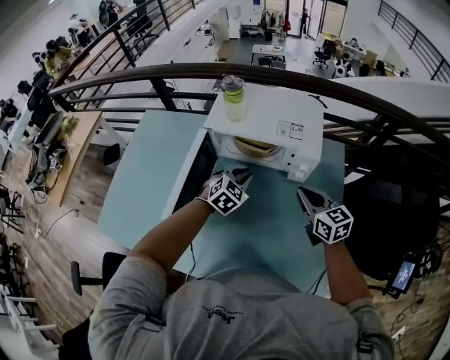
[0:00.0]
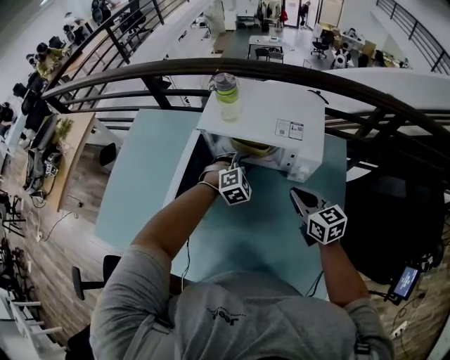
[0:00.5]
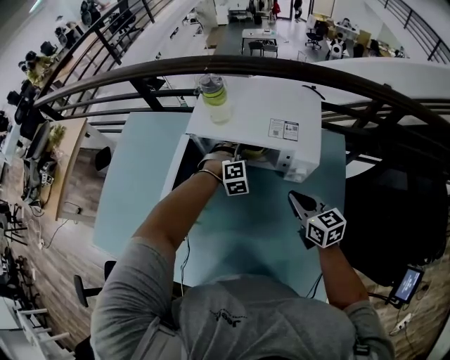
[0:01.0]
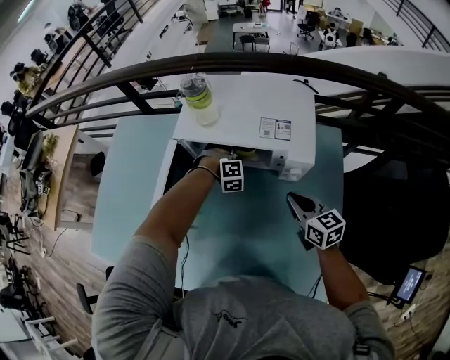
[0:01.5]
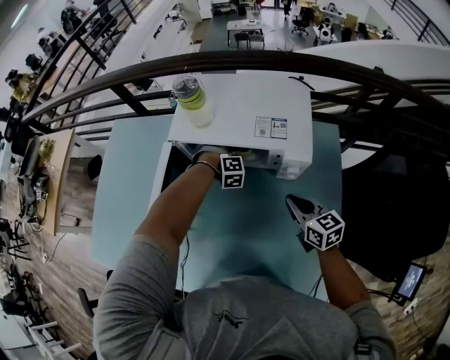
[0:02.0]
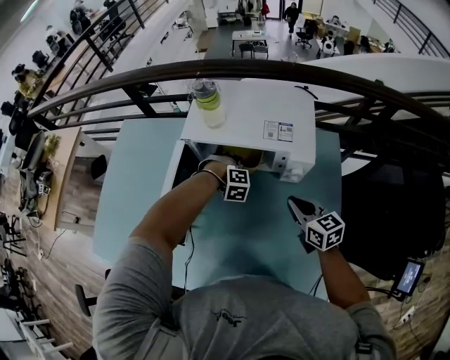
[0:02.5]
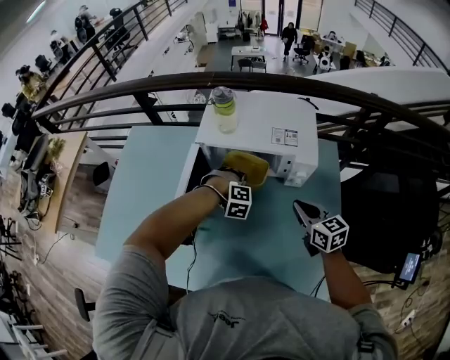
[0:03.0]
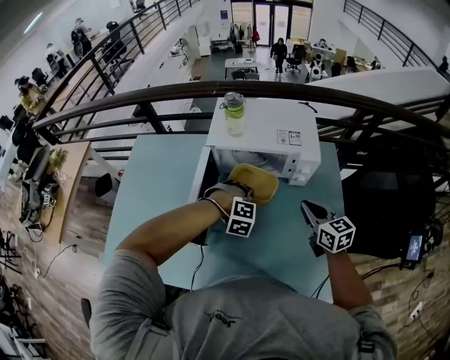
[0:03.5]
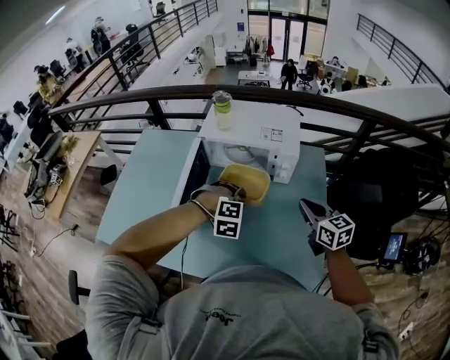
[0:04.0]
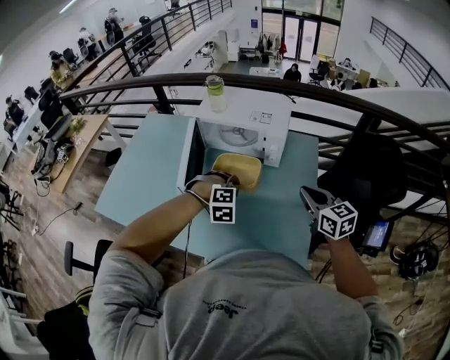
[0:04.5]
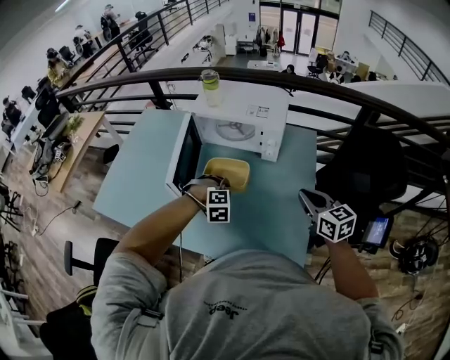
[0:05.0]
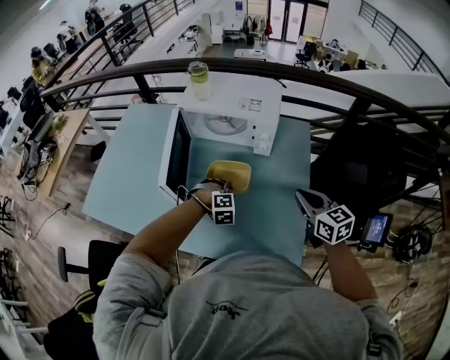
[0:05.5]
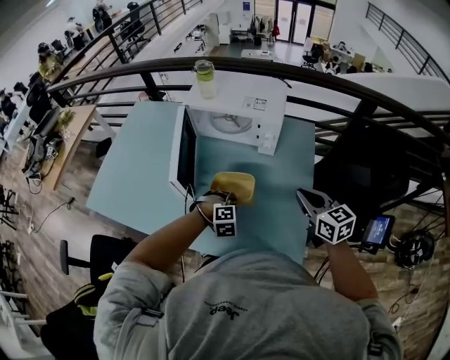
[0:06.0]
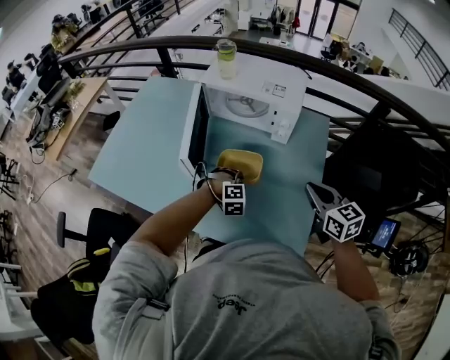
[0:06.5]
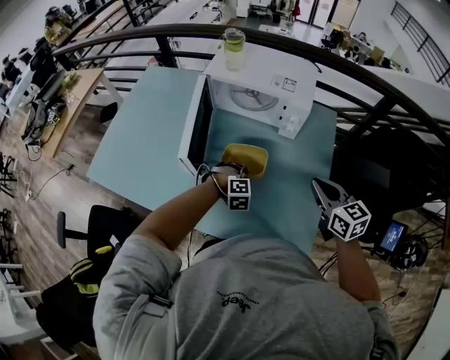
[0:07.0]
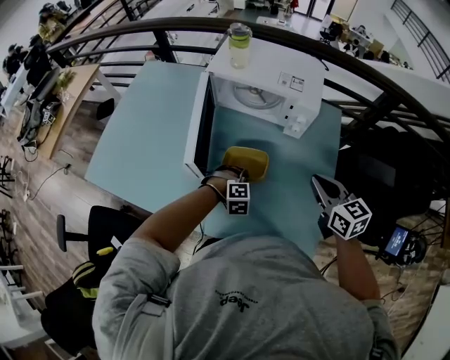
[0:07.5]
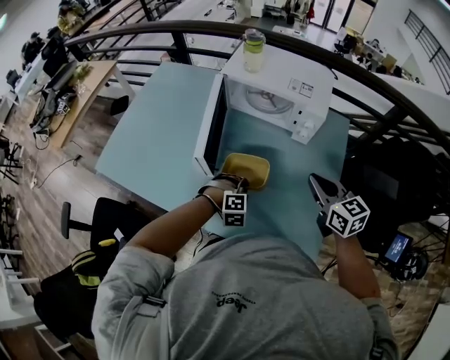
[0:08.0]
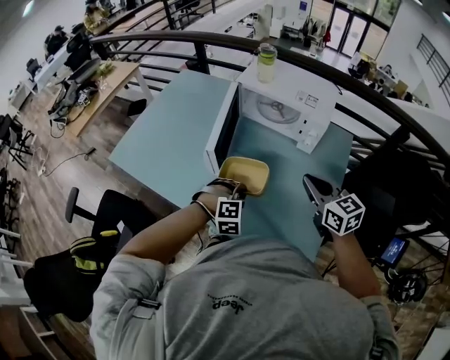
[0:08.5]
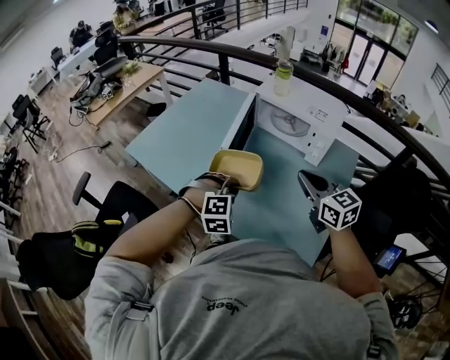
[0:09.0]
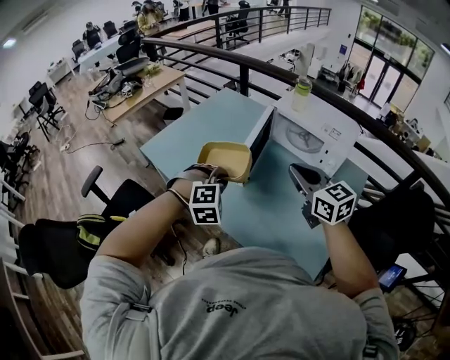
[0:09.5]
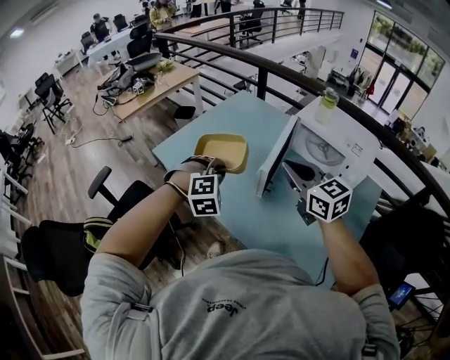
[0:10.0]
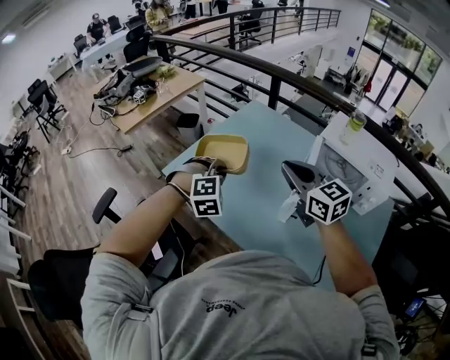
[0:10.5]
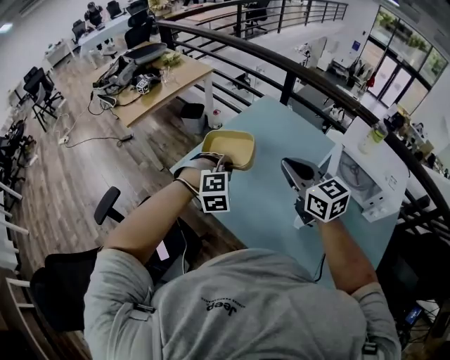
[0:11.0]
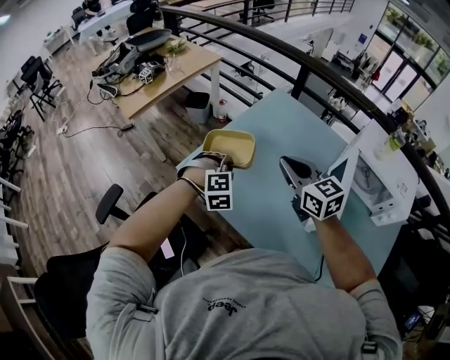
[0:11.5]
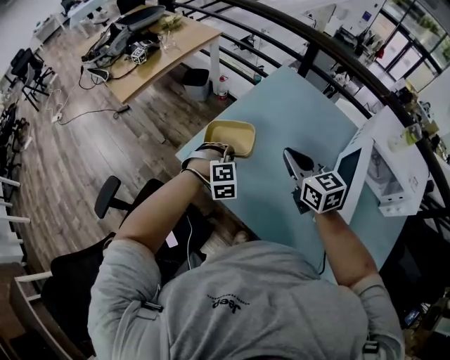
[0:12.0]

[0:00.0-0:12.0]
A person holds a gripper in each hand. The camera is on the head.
0:00.0 to 0:02.0: The left gripper goes roughly 20 cm downward and forward, twists some 50 degrees clockwise, seen from behind, and opens and closes again. Meanwhile the right gripper moves downward, about 10 cm.
0:02.0 to 0:04.0: The right gripper moves upward and backward, about 20 cm. Meanwhile the left gripper shifts some 35 cm backward and upward.
0:04.0 to 0:06.0: The right gripper shifts about 10 cm backward and to the right. Meanwhile the left gripper heads downward and backward, covering roughly 15 cm.
0:06.0 to 0:08.0: The left gripper travels to the left by about 5 cm; the right gripper goes some 10 cm to the left and forward.
0:08.0 to 0:10.0: The left gripper moves some 35 cm, and changes its angle by about 30 degrees; the right gripper moves approximately 30 cm, and turns by approximately 30 degrees.
0:10.0 to 0:12.0: The right gripper moves forward and to the left, roughly 35 cm. Meanwhile the left gripper travels forward, to the left and downward by about 40 cm.

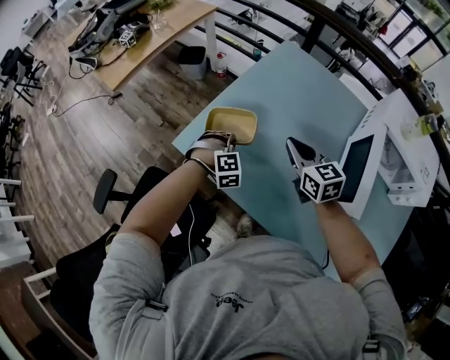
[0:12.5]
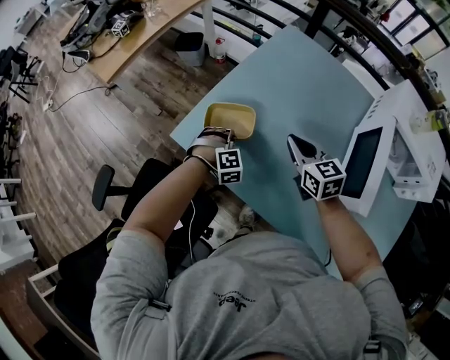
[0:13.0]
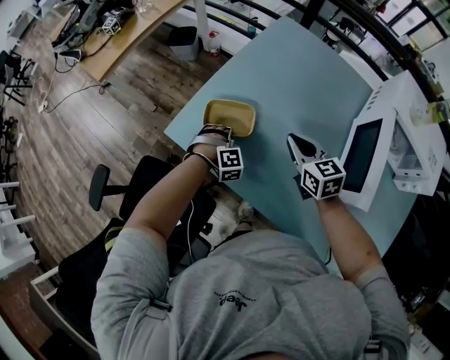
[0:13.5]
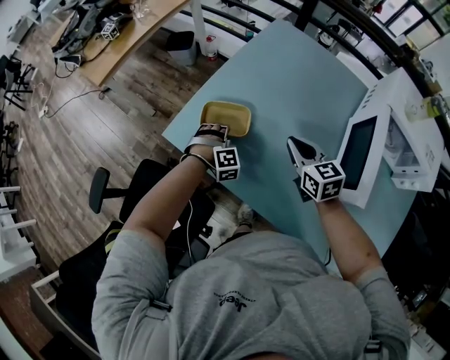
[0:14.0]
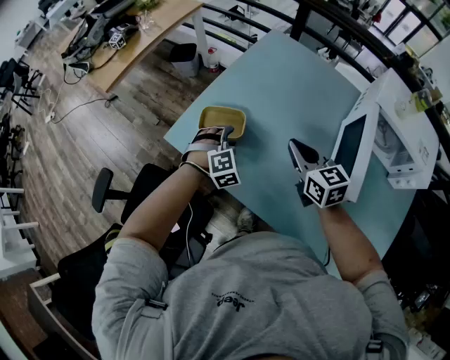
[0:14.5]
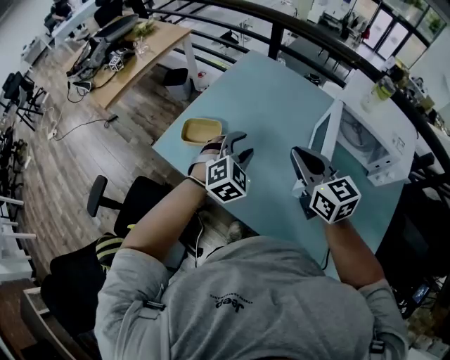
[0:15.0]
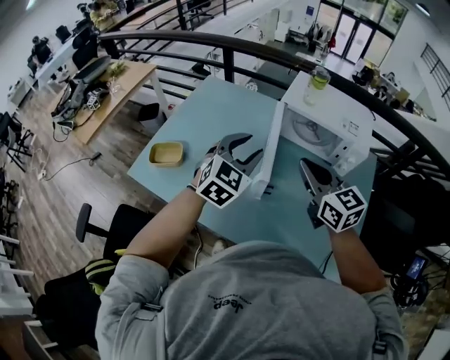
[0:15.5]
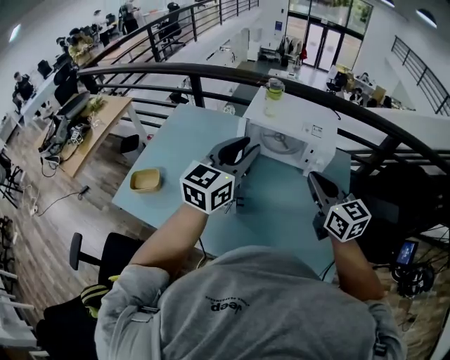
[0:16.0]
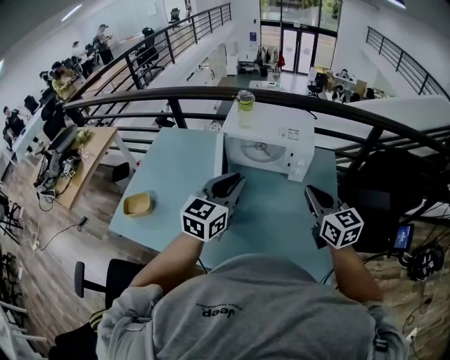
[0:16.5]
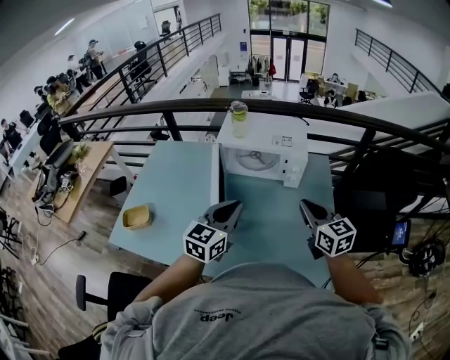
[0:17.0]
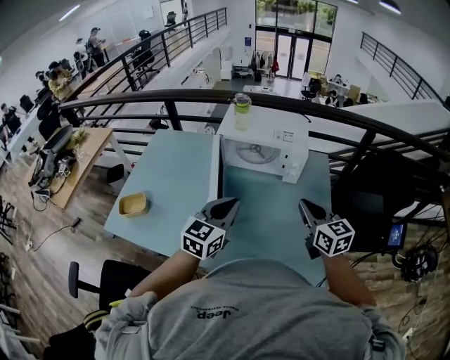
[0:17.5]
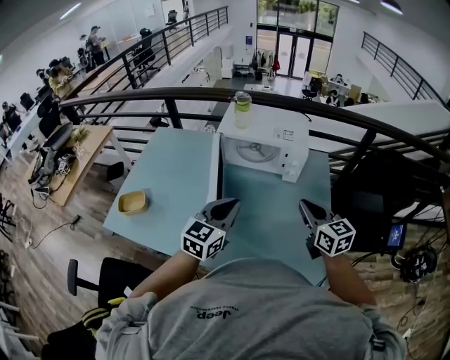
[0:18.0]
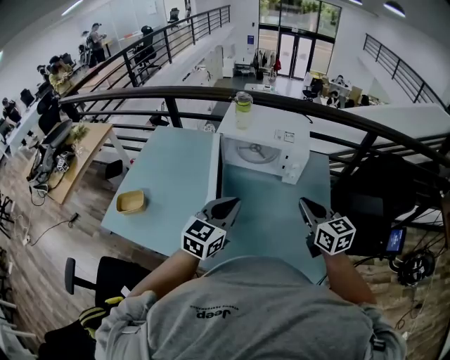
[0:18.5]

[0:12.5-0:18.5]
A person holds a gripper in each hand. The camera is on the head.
0:12.5 to 0:14.5: The right gripper shifts roughly 5 cm backward, while the left gripper travels downward and back again, some 10 cm each way, and opens its fingers.
0:14.5 to 0:16.5: The pair of grippers is taken roughly 50 cm. The left gripper angles its fingers upward, by some 40 degrees, and closes up. The right gripper changes its angle by roughly 30 degrees.
0:16.5 to 0:18.5: The left gripper shifts about 5 cm downward.

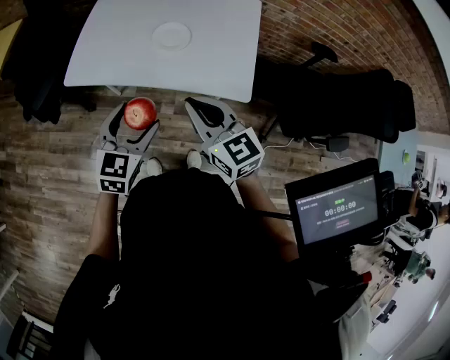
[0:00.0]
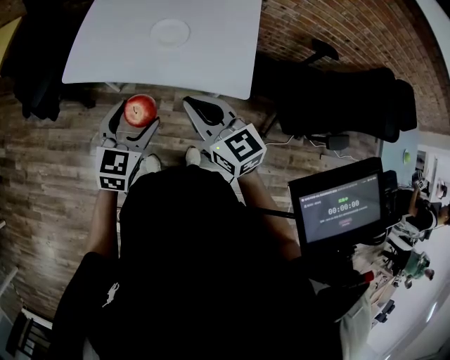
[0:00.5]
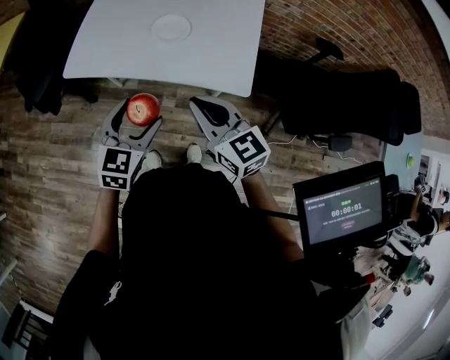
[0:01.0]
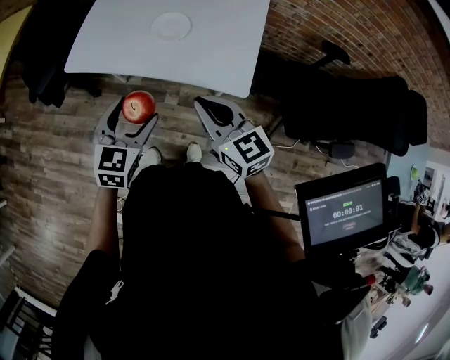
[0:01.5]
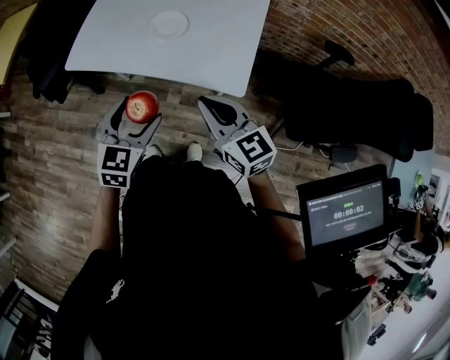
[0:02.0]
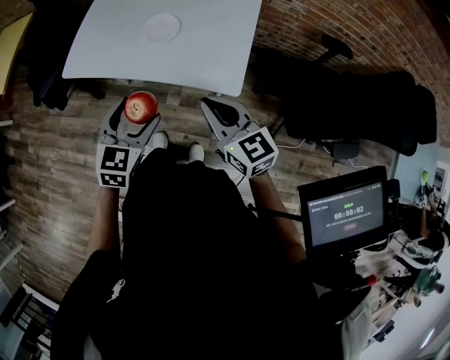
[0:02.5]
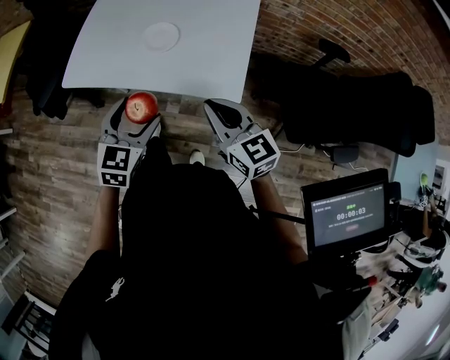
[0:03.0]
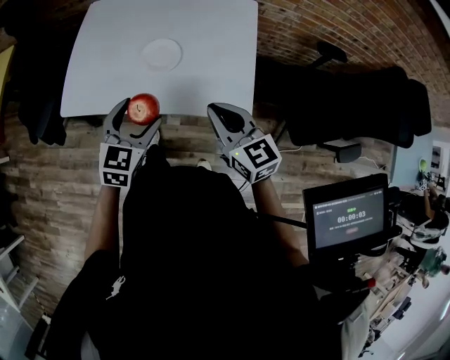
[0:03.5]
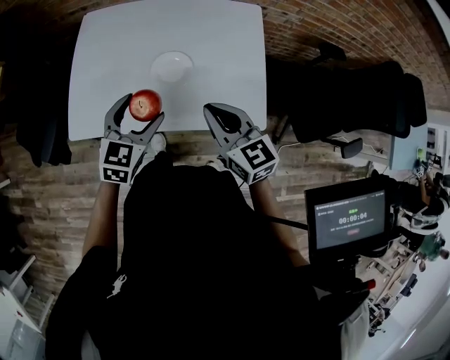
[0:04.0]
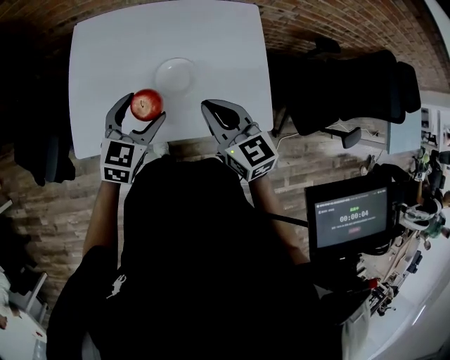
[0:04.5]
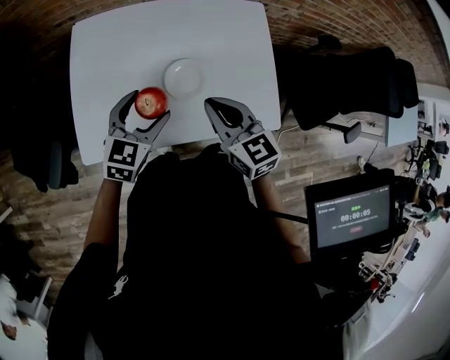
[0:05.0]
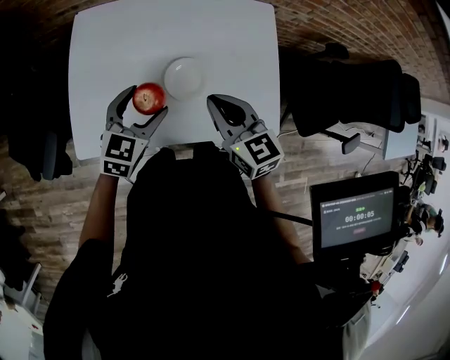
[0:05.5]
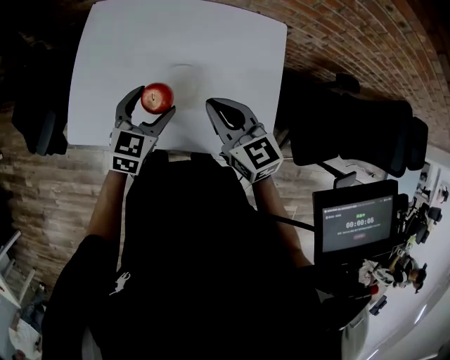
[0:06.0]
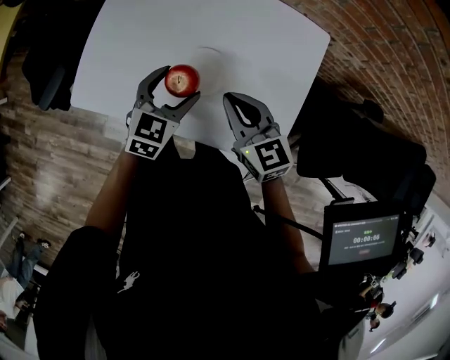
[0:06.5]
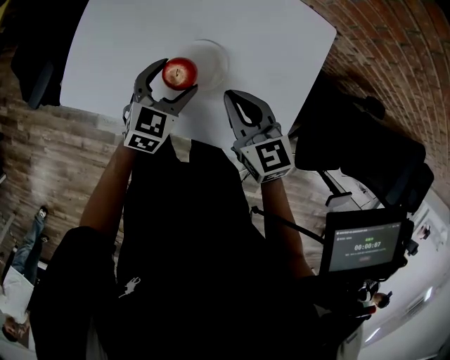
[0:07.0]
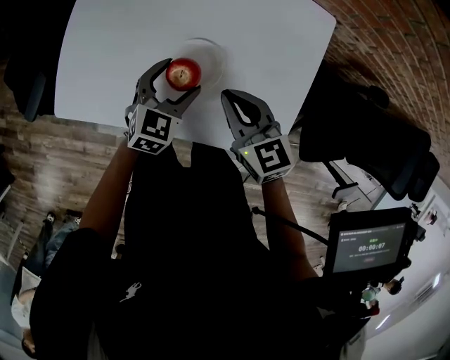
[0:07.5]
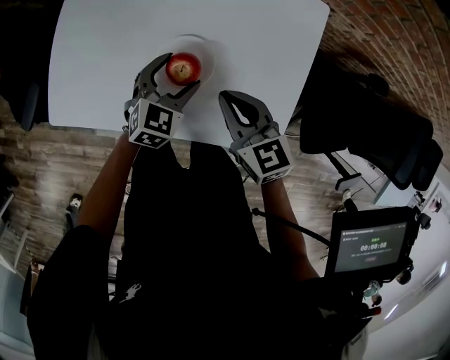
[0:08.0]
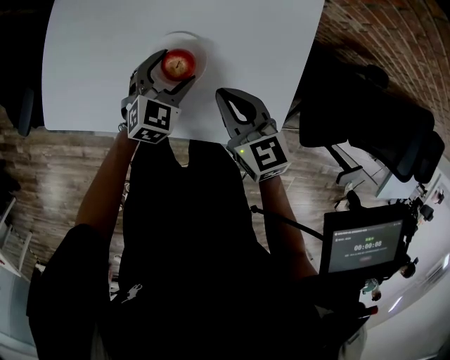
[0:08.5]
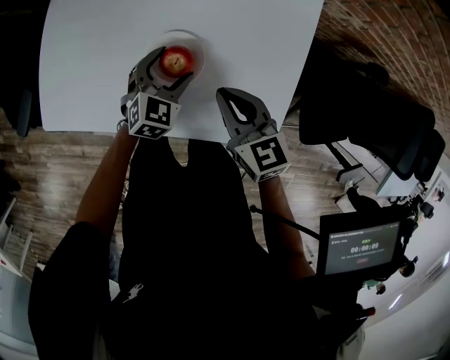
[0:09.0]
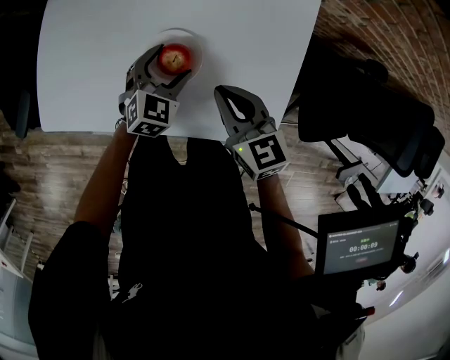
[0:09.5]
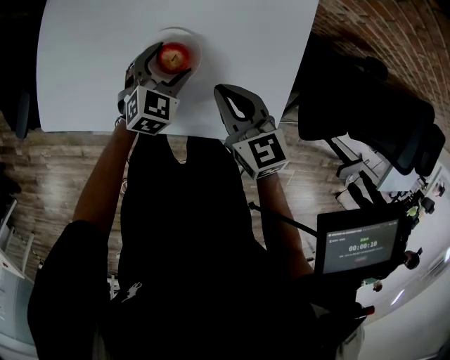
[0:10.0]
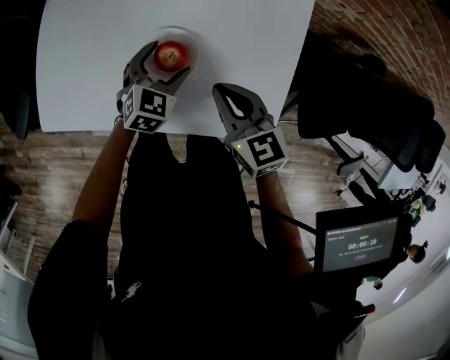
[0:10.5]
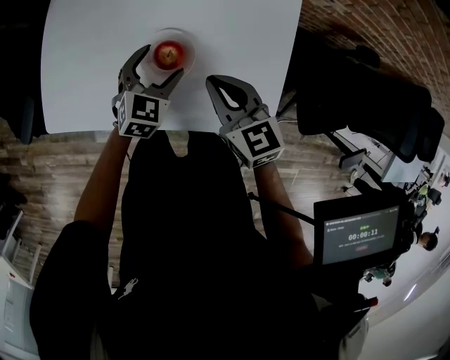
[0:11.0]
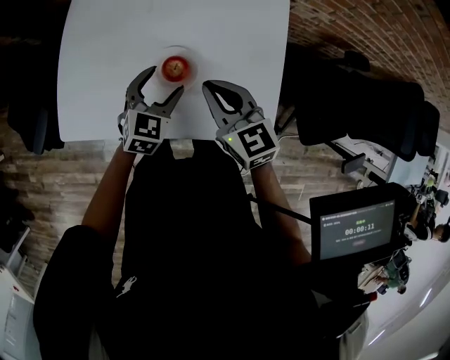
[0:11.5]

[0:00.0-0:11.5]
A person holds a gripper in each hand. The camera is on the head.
0:00.0 to 0:02.0: Both grippers move to the right, some 10 cm.
0:02.0 to 0:04.0: The right gripper goes some 20 cm forward and to the left. Meanwhile the left gripper is displaced forward by approximately 25 cm.
0:04.0 to 0:06.0: The two grippers go about 10 cm forward.
0:06.0 to 0:07.5: The grippers both shift downward by about 10 cm.
0:07.5 to 0:09.5: The left gripper shifts by approximately 5 cm.
0:09.5 to 0:11.5: Both grippers travel together upward, some 5 cm.
